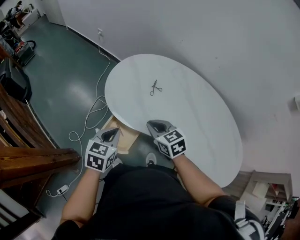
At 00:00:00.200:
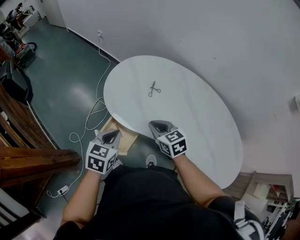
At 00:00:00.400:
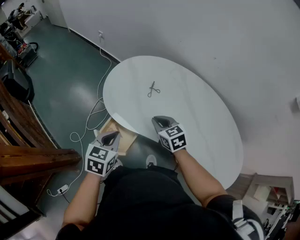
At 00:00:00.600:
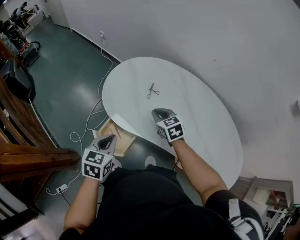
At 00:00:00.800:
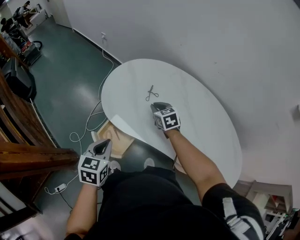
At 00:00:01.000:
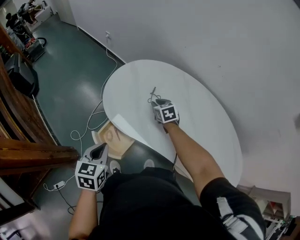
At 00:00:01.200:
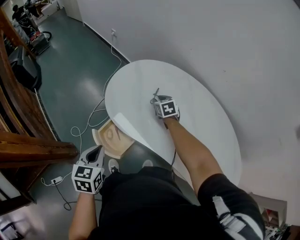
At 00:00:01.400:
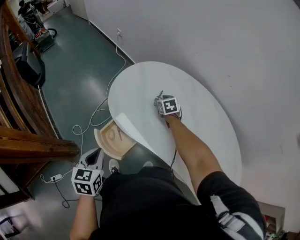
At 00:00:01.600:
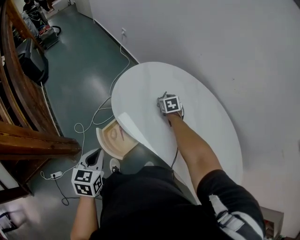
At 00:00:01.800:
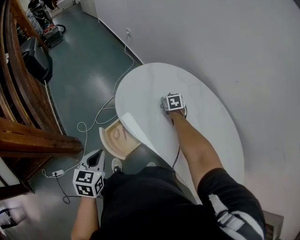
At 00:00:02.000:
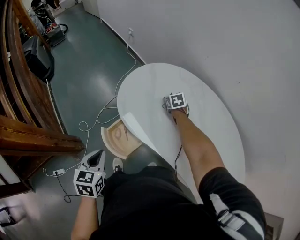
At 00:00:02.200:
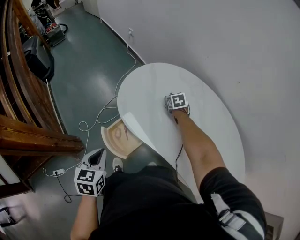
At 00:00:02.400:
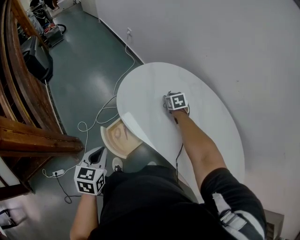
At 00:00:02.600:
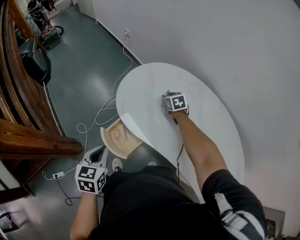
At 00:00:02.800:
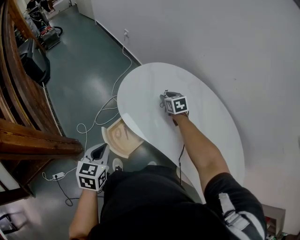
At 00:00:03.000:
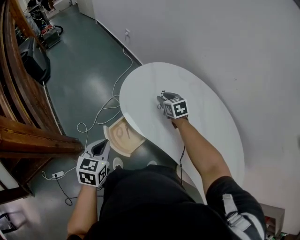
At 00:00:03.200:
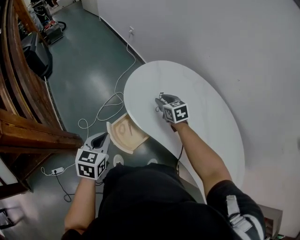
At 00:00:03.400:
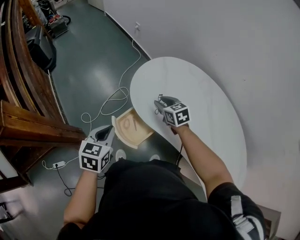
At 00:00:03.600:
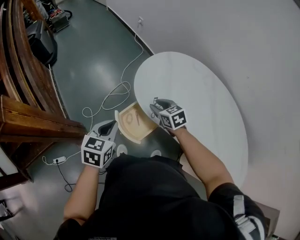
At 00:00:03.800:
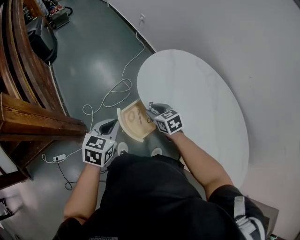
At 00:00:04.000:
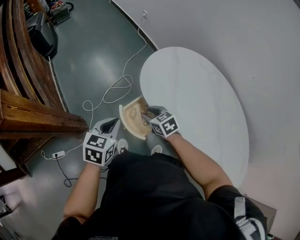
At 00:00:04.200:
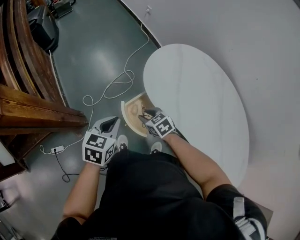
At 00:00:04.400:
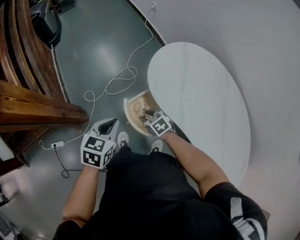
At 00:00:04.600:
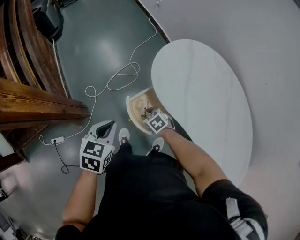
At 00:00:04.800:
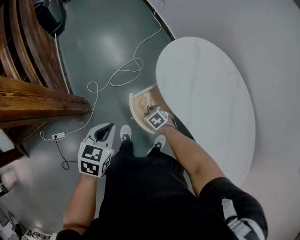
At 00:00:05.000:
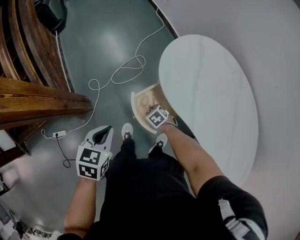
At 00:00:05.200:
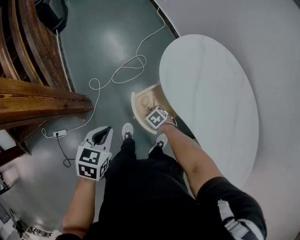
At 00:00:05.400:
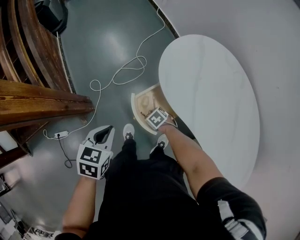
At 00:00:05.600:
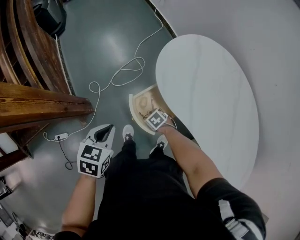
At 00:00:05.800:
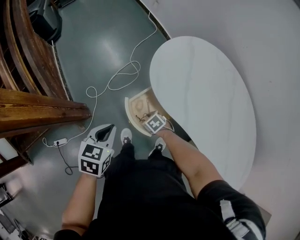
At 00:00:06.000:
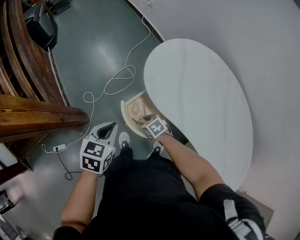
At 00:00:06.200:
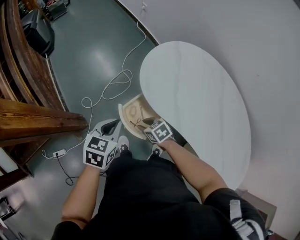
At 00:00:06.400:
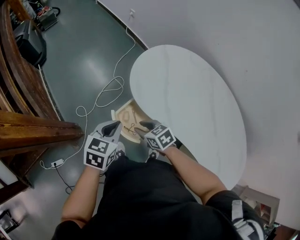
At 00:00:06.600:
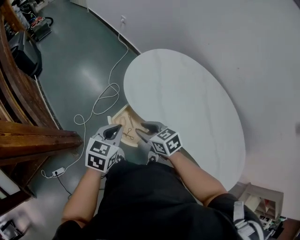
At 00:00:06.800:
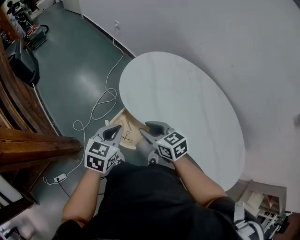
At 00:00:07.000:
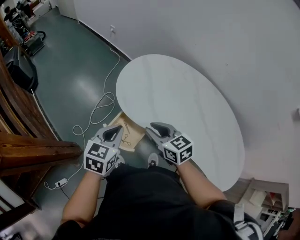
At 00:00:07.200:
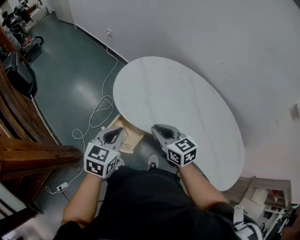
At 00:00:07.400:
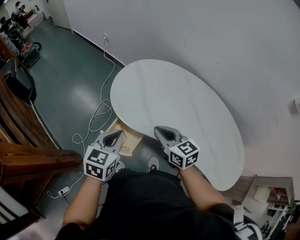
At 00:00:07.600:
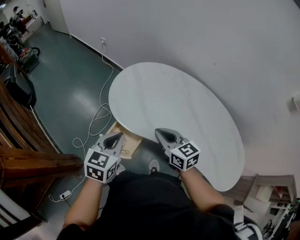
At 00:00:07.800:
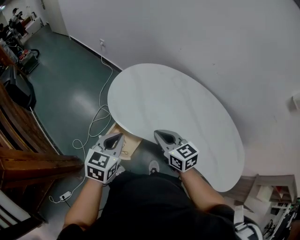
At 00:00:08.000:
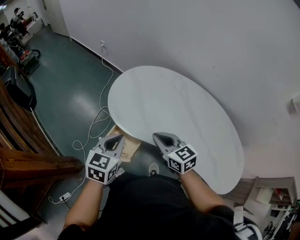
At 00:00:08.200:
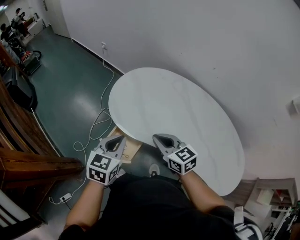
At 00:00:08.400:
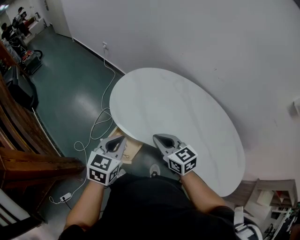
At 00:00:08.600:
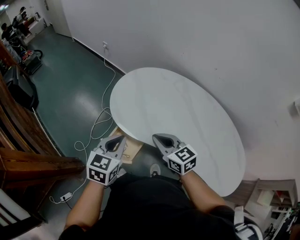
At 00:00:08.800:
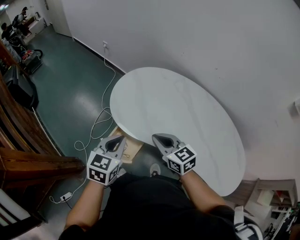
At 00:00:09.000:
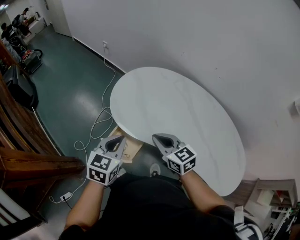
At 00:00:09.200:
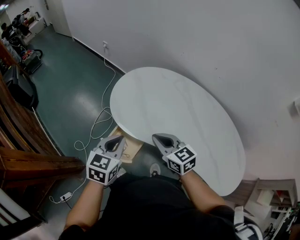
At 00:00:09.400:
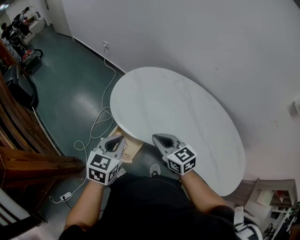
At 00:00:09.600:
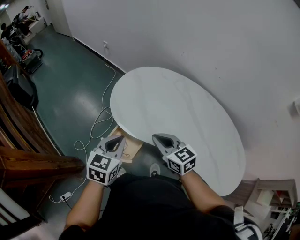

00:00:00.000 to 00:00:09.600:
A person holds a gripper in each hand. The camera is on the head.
00:00:00.000 to 00:00:01.600: The left gripper heads backward, covering about 5 cm, and turns by roughly 30 degrees. The right gripper moves forward and downward, about 30 cm, and opens.
00:00:01.600 to 00:00:03.200: The right gripper is displaced to the left, upward and backward by about 15 cm.
00:00:03.200 to 00:00:04.800: The left gripper is displaced to the left and downward by about 10 cm, while the right gripper is displaced downward, to the left and backward by approximately 35 cm, and swivels approximately 40 degrees.
00:00:04.800 to 00:00:06.400: The left gripper shifts by about 10 cm, while the right gripper shifts roughly 15 cm upward, and changes its angle by approximately 30 degrees.
00:00:06.400 to 00:00:08.000: The right gripper travels upward and to the right by some 25 cm, changes its angle by some 30 degrees, and closes. Meanwhile the left gripper heads to the right and upward, covering approximately 15 cm.
00:00:08.000 to 00:00:09.600: Both grippers stay about where they are.

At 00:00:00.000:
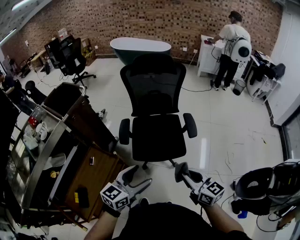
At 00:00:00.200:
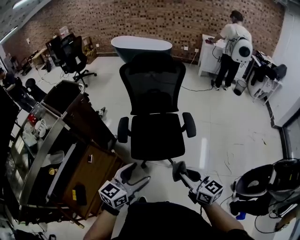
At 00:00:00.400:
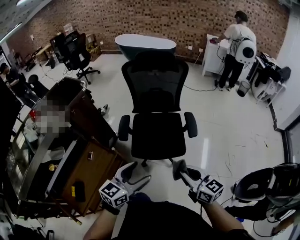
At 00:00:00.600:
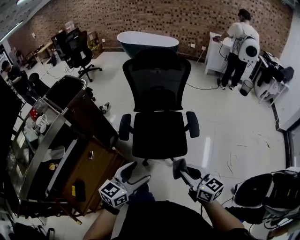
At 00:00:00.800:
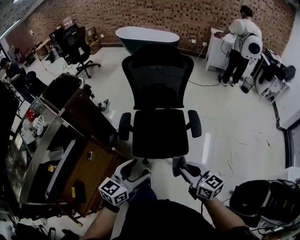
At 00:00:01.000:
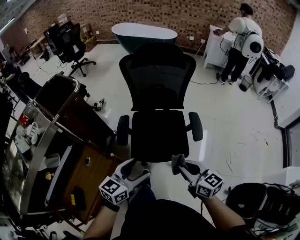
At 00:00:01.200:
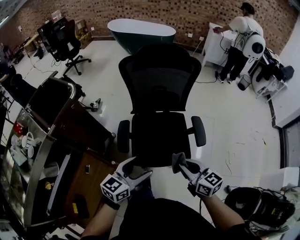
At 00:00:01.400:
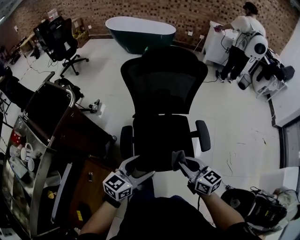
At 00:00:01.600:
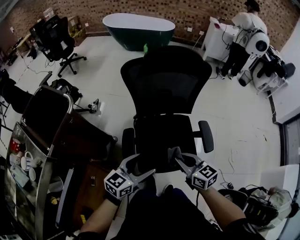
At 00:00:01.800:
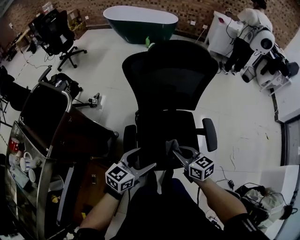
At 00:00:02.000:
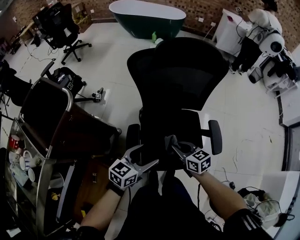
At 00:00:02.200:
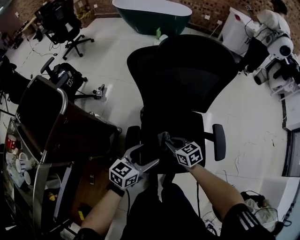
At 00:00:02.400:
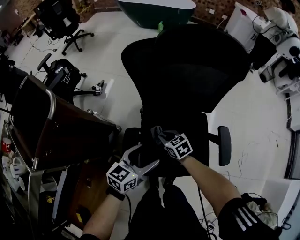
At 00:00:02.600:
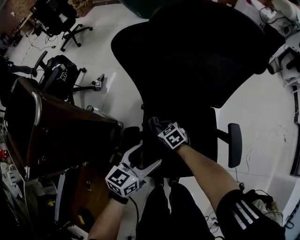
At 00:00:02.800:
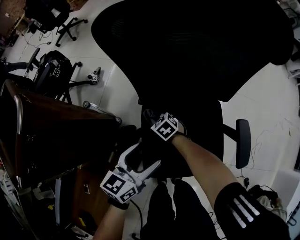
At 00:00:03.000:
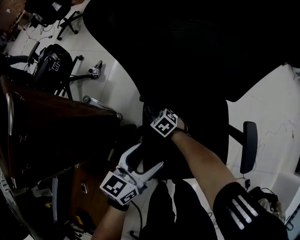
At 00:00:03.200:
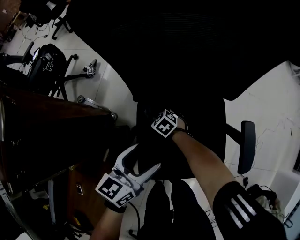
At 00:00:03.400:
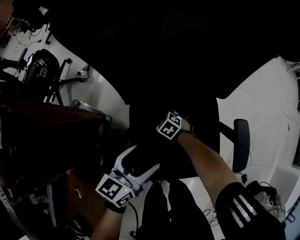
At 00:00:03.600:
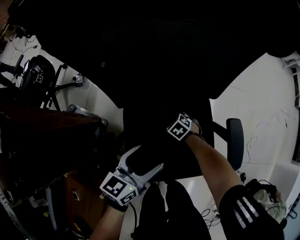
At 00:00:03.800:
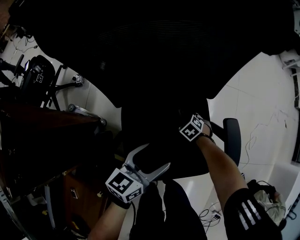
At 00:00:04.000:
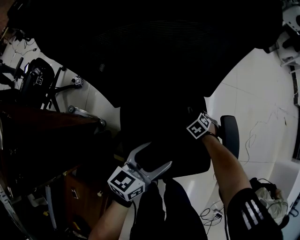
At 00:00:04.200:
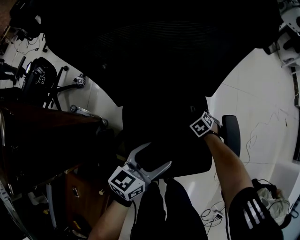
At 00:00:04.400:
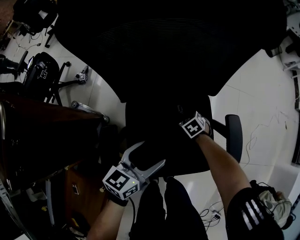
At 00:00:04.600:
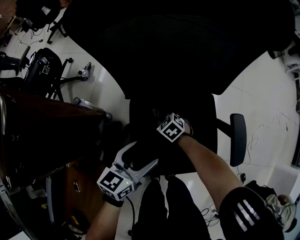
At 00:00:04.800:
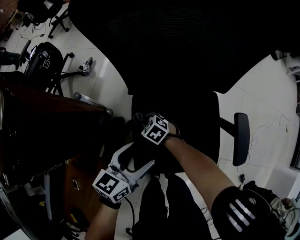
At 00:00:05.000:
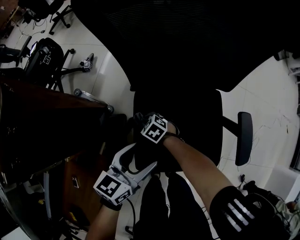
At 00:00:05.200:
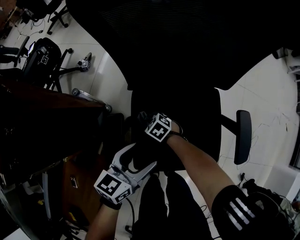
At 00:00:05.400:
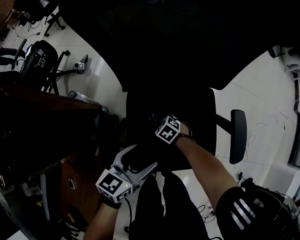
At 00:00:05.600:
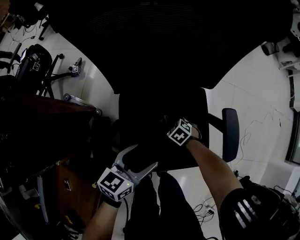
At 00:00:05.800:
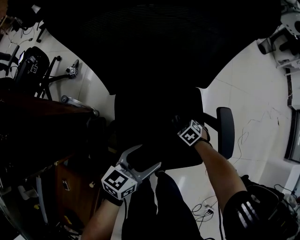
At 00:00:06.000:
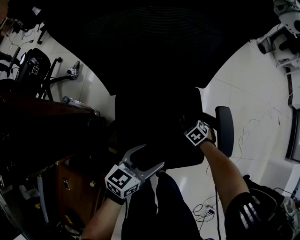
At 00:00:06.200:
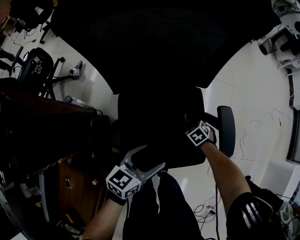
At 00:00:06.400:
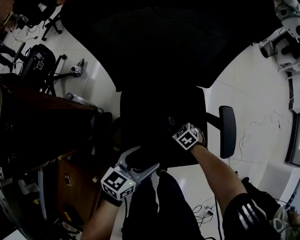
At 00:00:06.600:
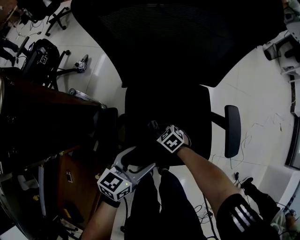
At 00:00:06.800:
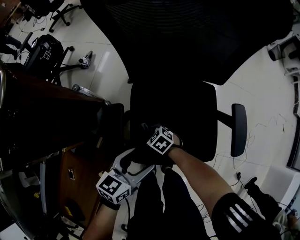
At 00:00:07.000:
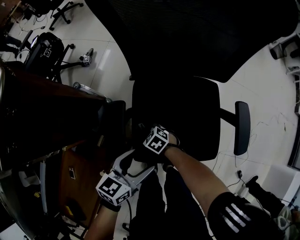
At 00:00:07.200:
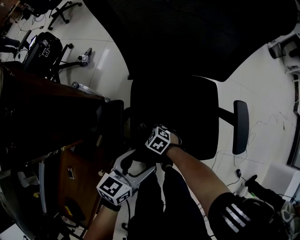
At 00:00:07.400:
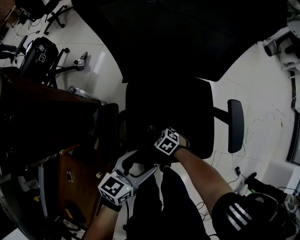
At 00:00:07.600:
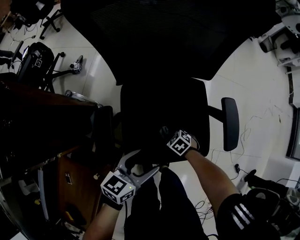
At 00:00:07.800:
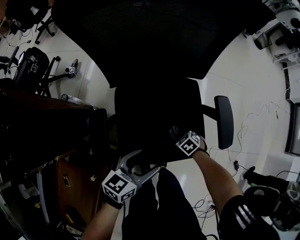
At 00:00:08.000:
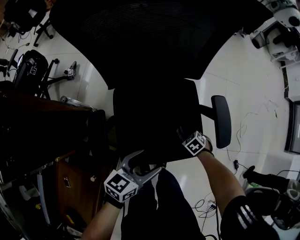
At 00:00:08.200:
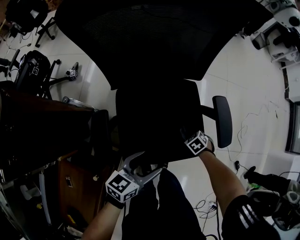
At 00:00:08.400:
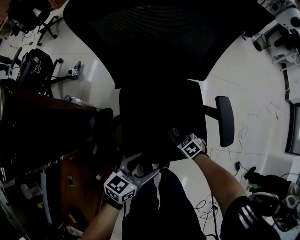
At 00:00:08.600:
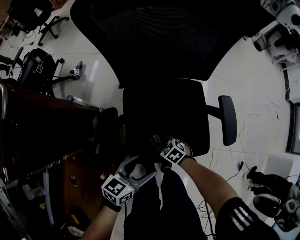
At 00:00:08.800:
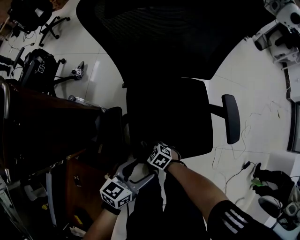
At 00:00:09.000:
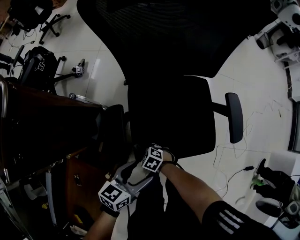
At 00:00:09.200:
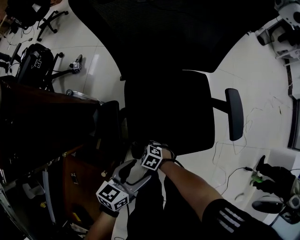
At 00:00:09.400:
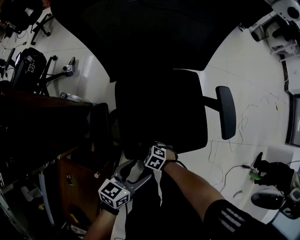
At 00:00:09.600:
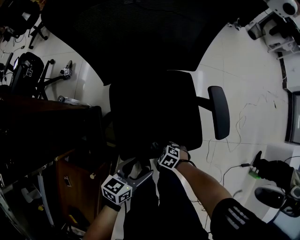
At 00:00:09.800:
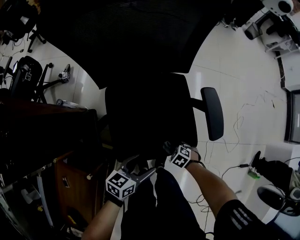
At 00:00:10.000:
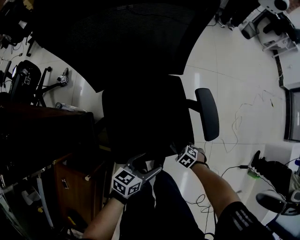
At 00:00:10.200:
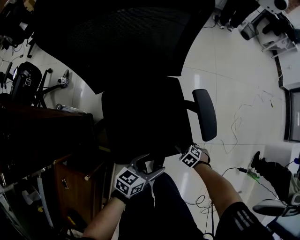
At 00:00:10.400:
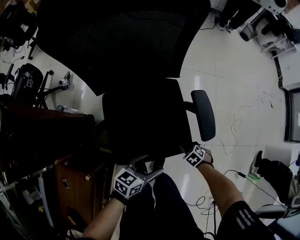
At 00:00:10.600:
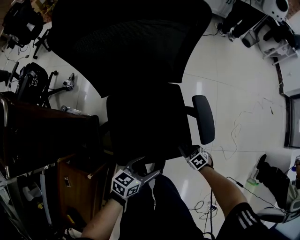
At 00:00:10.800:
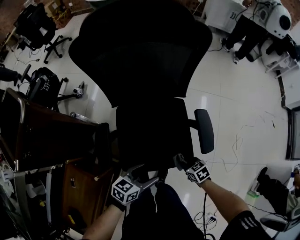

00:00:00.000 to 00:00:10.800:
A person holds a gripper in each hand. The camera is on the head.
00:00:00.000 to 00:00:01.600: The left gripper travels forward by roughly 30 cm; the right gripper shifts some 35 cm forward and to the left.
00:00:01.600 to 00:00:03.000: The right gripper shifts some 50 cm downward and forward, and tilts its fingers about 30 degrees downward. The left gripper is displaced downward and forward by some 30 cm.
00:00:04.600 to 00:00:06.200: The left gripper ends up approximately 10 cm from where it was. The right gripper ends up roughly 25 cm from where it was.
00:00:07.800 to 00:00:09.200: The left gripper ends up approximately 10 cm from where it was; the right gripper ends up about 30 cm from where it was, and swivels about 20 degrees.
00:00:09.200 to 00:00:10.800: The left gripper changes place by about 15 cm, while the right gripper moves about 35 cm, and rotates approximately 30 degrees.

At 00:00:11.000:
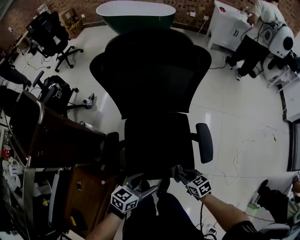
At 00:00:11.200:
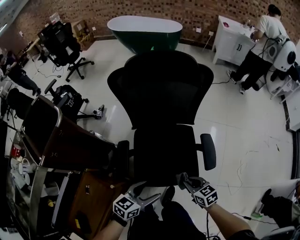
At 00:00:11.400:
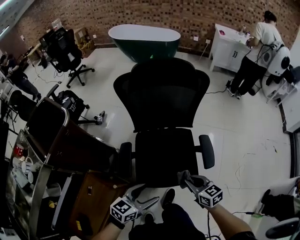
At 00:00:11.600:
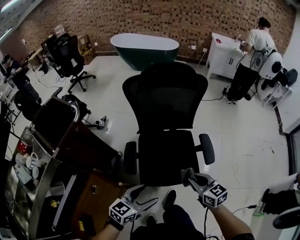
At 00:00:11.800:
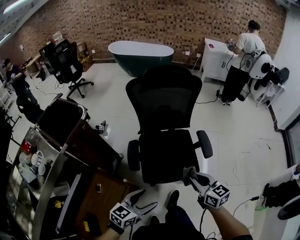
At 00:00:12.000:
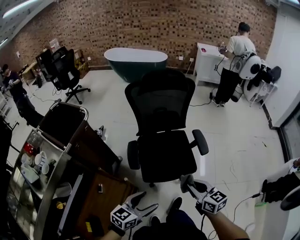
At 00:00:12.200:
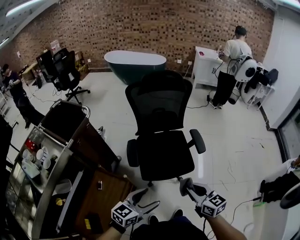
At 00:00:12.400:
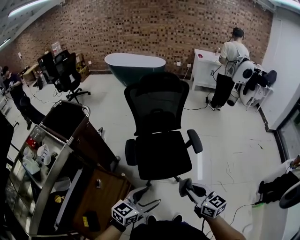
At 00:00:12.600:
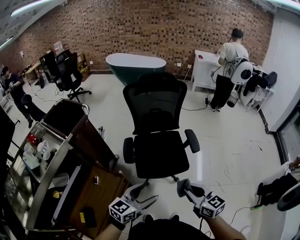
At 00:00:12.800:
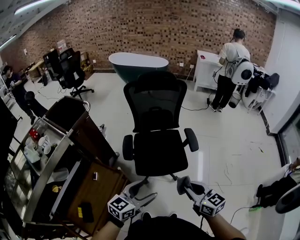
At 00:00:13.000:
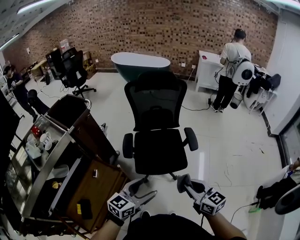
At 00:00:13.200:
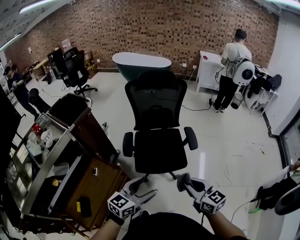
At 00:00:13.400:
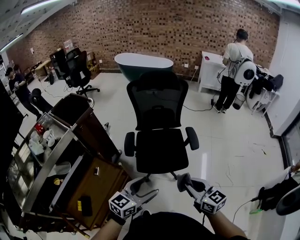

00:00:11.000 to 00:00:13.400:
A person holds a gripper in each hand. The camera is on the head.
00:00:11.000 to 00:00:12.200: The right gripper shifts about 40 cm upward and backward, and swivels approximately 40 degrees. Meanwhile the left gripper travels backward and upward by roughly 35 cm, and swivels roughly 20 degrees.
00:00:12.200 to 00:00:13.400: The left gripper is displaced to the right and upward by roughly 10 cm, while the right gripper moves to the right, backward and upward, about 10 cm.
